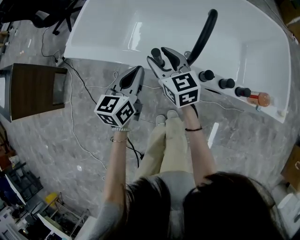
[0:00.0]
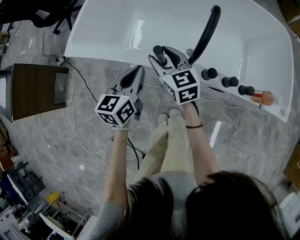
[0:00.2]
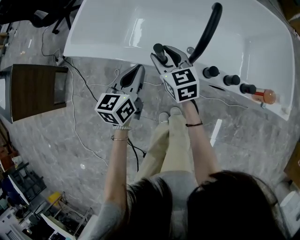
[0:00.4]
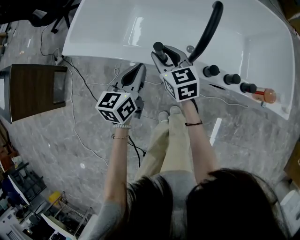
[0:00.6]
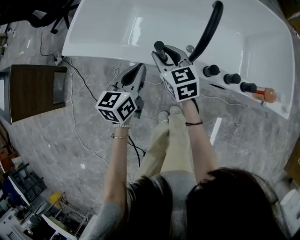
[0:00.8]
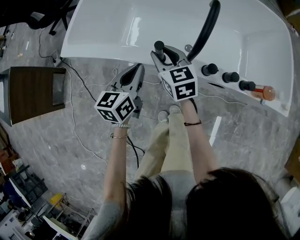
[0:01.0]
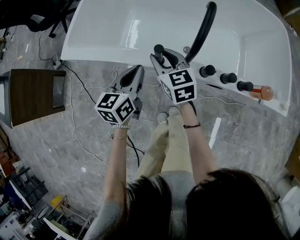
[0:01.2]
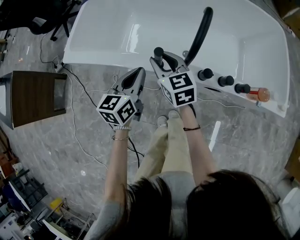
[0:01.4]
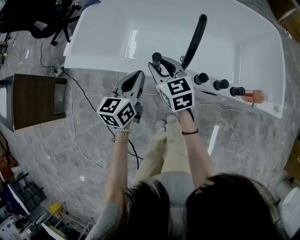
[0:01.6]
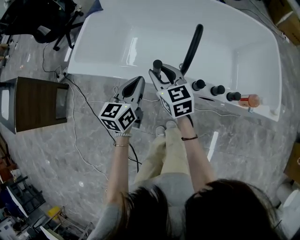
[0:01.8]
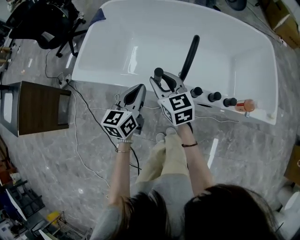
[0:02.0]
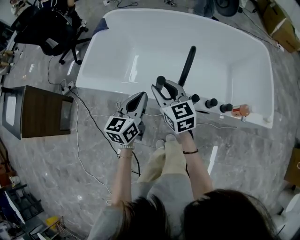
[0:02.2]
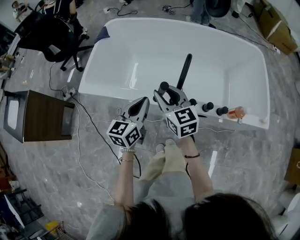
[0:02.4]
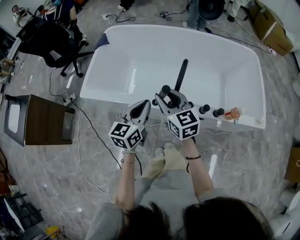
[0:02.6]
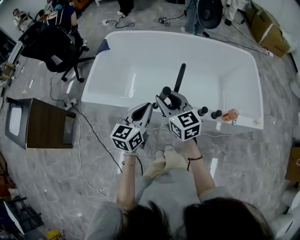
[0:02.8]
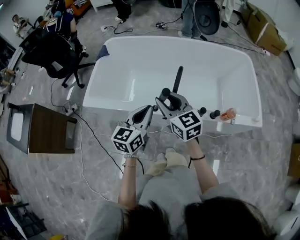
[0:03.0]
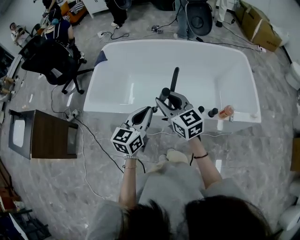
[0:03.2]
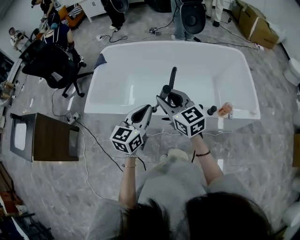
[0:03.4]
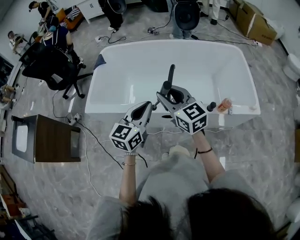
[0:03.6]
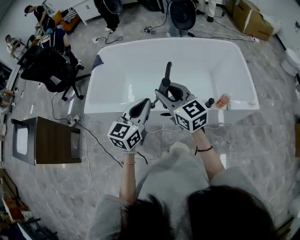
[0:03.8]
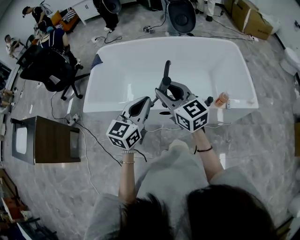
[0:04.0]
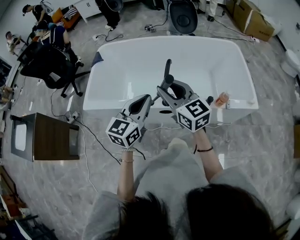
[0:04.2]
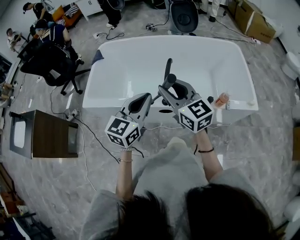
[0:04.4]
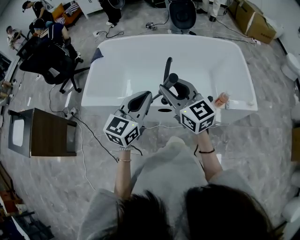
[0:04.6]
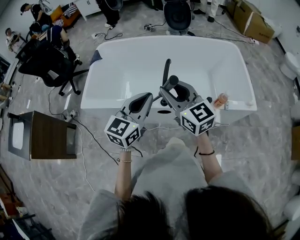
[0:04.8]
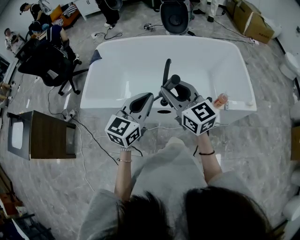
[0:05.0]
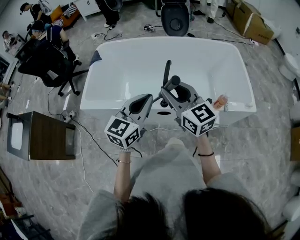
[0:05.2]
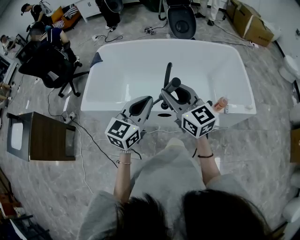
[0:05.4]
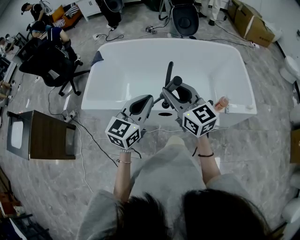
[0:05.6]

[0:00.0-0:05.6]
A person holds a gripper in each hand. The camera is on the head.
0:00.0 to 0:01.4: The grippers make only small movements.
0:01.4 to 0:02.8: Both grippers move upward, roughly 20 cm.
0:02.8 to 0:04.2: The two grippers go approximately 10 cm upward and backward.
0:04.2 to 0:05.6: The grippers move only a little.

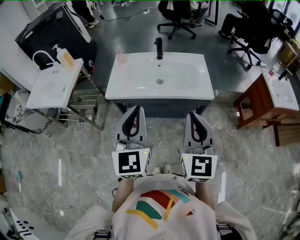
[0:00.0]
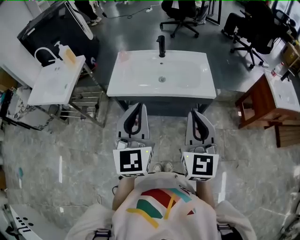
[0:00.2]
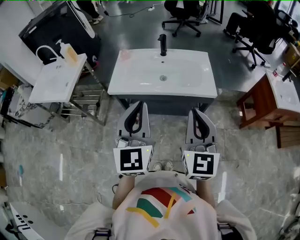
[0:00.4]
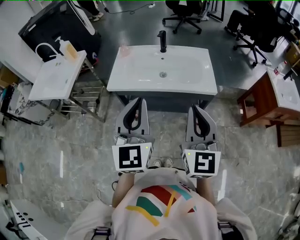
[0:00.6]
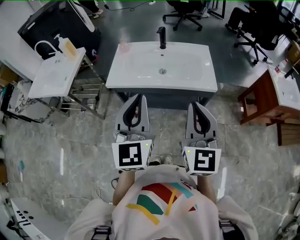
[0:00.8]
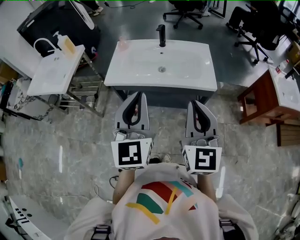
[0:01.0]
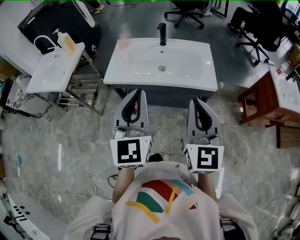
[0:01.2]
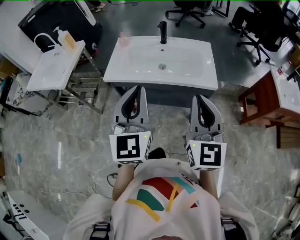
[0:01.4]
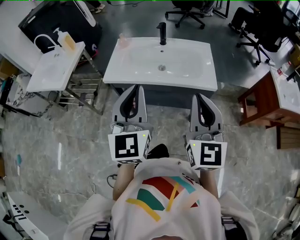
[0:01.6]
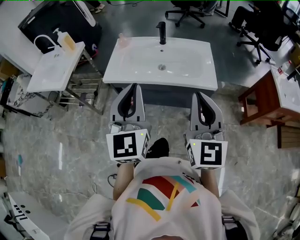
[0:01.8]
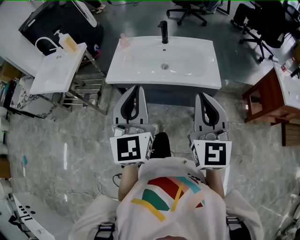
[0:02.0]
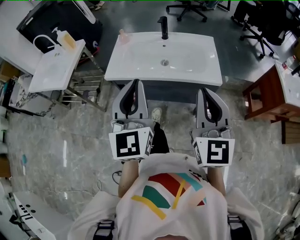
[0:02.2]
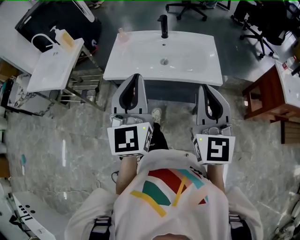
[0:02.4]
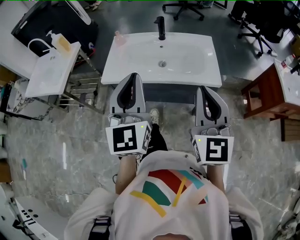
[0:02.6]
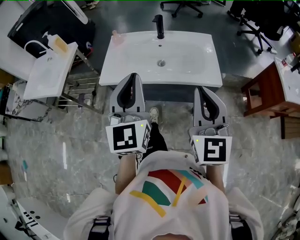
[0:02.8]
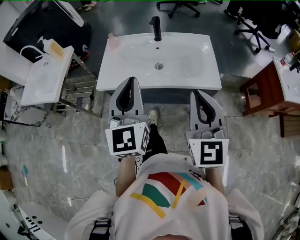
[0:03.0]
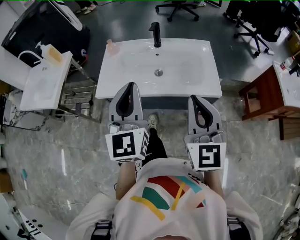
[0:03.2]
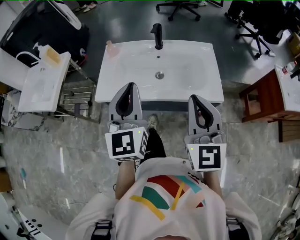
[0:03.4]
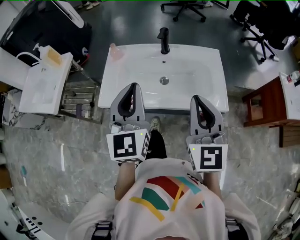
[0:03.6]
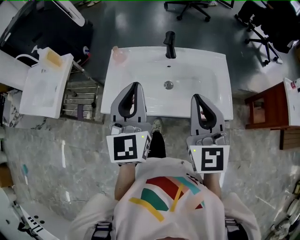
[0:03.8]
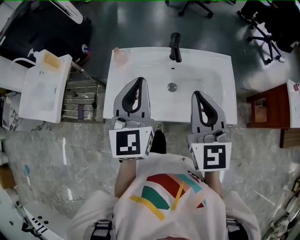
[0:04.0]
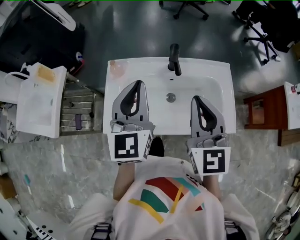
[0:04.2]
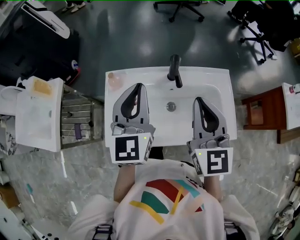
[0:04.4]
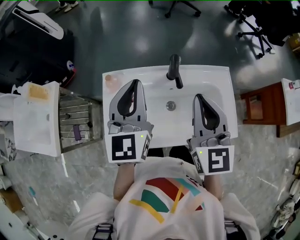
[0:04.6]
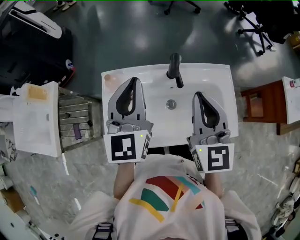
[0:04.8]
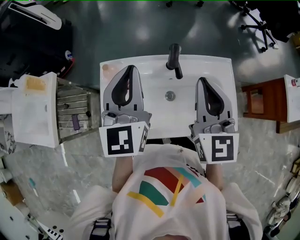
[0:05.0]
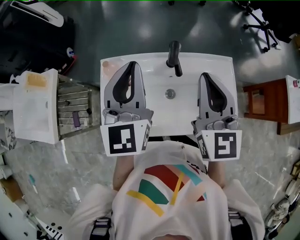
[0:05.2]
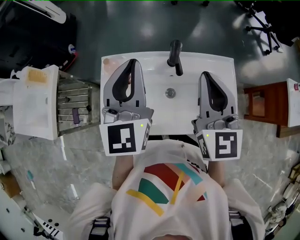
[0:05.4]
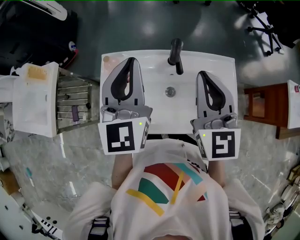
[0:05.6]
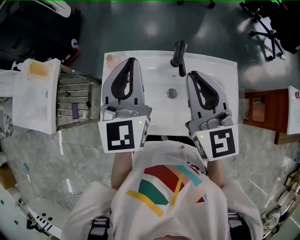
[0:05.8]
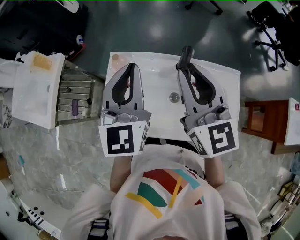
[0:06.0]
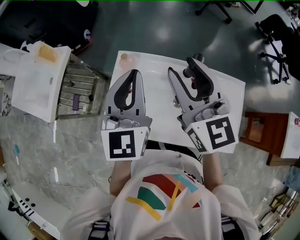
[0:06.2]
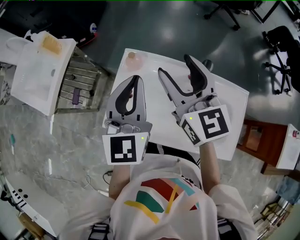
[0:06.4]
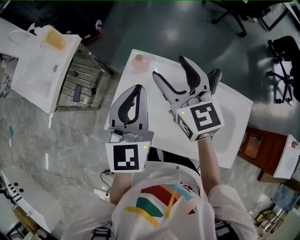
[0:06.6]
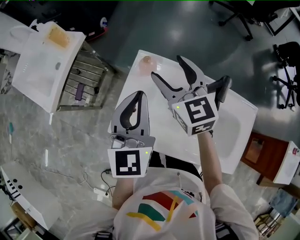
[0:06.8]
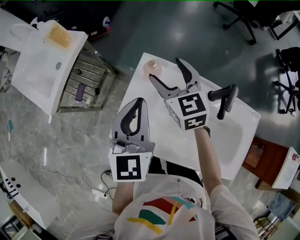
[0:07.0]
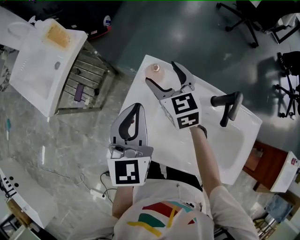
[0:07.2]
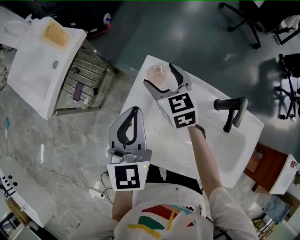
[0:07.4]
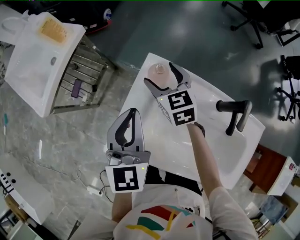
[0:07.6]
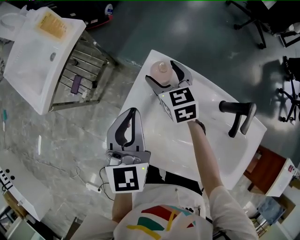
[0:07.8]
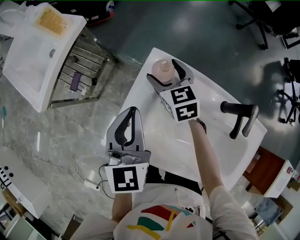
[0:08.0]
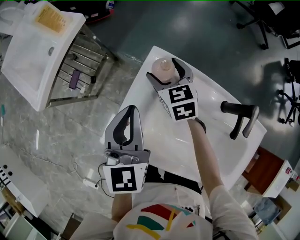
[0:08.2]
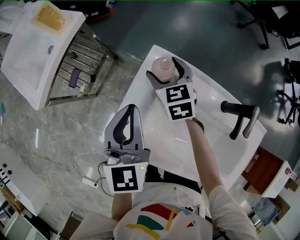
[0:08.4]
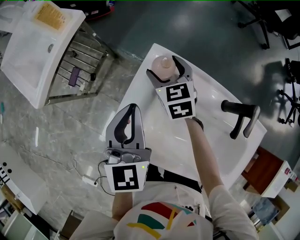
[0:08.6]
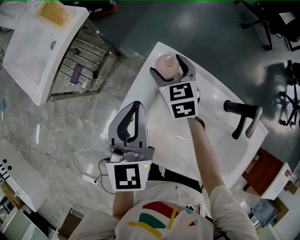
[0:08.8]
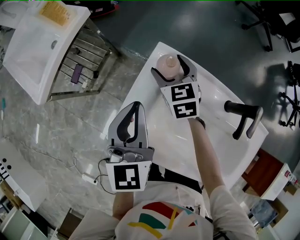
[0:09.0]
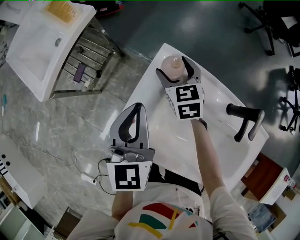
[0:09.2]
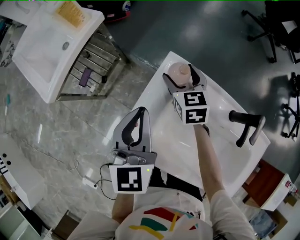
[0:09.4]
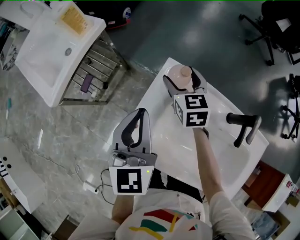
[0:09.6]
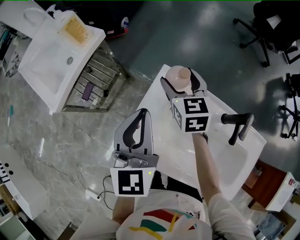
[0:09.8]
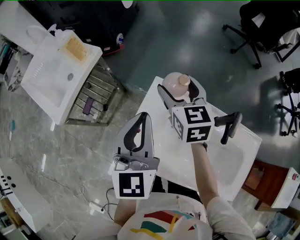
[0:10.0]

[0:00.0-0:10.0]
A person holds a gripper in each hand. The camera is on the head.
0:00.0 to 0:01.4: The grippers move only a little.
0:01.4 to 0:02.8: The two grippers go about 5 cm forward.
0:02.8 to 0:04.2: The grippers both shift forward by approximately 30 cm.
0:04.2 to 0:05.8: Both grippers travel together forward, some 10 cm.
0:05.8 to 0:07.2: The right gripper heads forward, to the left and downward, covering about 35 cm, swivels roughly 30 degrees, and opens its fingers. Meanwhile the left gripper goes approximately 20 cm to the left and downward, and turns by about 20 degrees.
0:07.2 to 0:08.6: The left gripper is displaced downward by roughly 5 cm. The right gripper shifts some 10 cm downward.
0:08.6 to 0:10.0: The grippers both shift upward by roughly 15 cm.

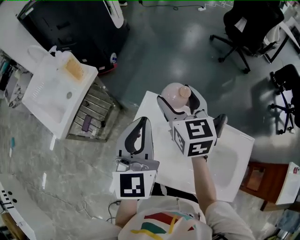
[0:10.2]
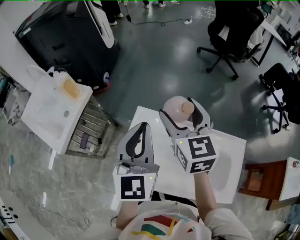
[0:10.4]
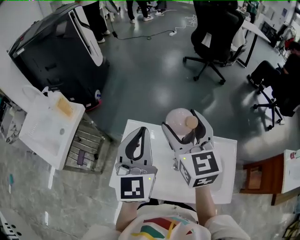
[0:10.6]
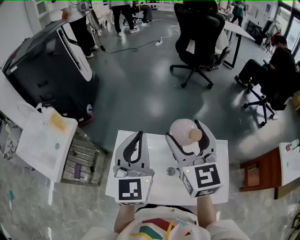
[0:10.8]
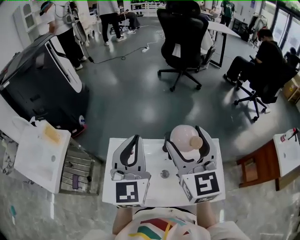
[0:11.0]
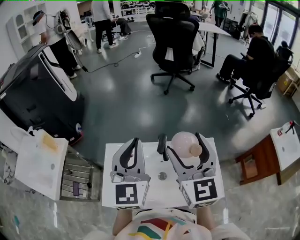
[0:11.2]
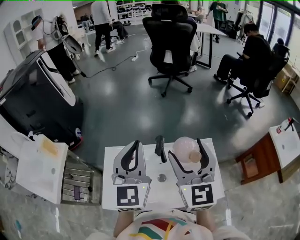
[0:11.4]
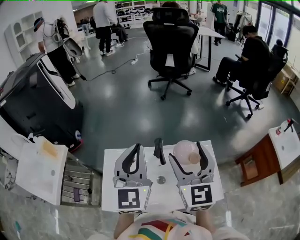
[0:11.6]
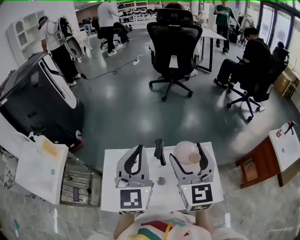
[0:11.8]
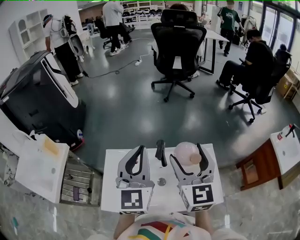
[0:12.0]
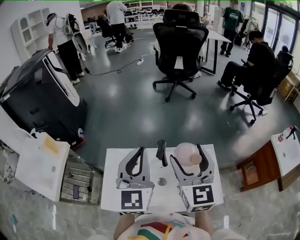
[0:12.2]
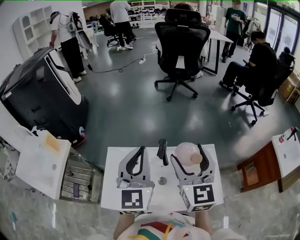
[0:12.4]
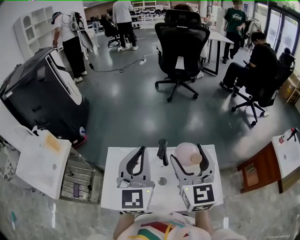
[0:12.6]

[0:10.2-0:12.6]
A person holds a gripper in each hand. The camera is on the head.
0:10.2 to 0:11.4: The right gripper changes place by some 35 cm, and turns by roughly 40 degrees; the left gripper moves roughly 20 cm, and changes its angle by some 30 degrees.
0:11.4 to 0:12.6: The grippers make only small movements.

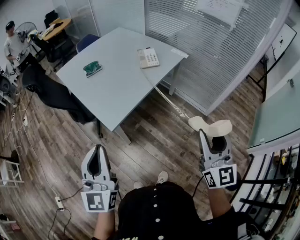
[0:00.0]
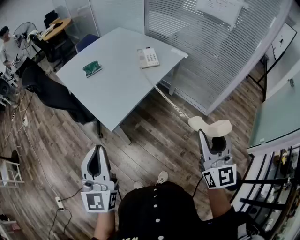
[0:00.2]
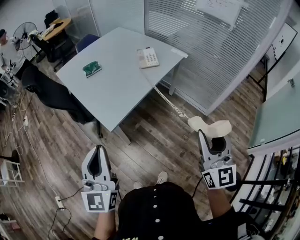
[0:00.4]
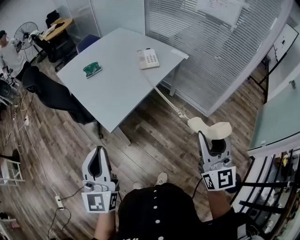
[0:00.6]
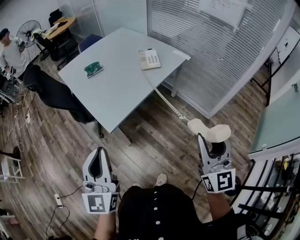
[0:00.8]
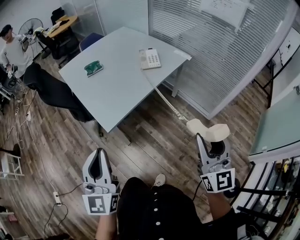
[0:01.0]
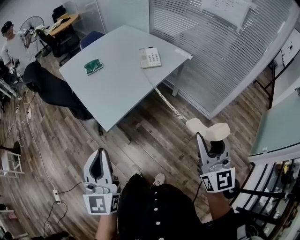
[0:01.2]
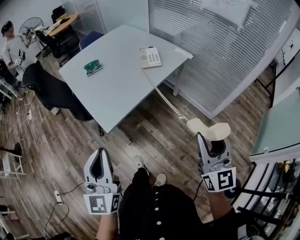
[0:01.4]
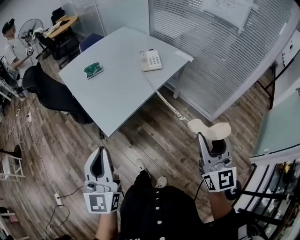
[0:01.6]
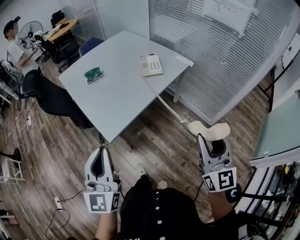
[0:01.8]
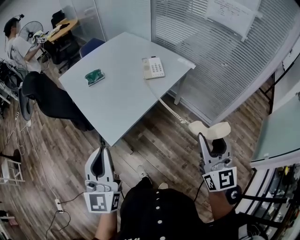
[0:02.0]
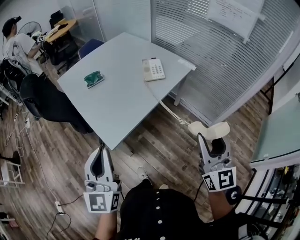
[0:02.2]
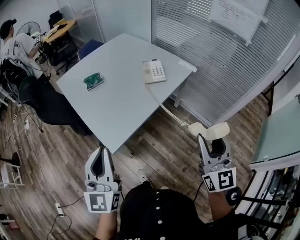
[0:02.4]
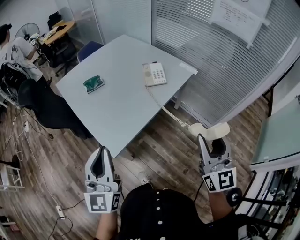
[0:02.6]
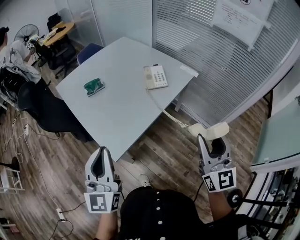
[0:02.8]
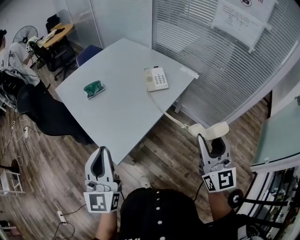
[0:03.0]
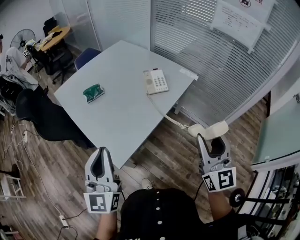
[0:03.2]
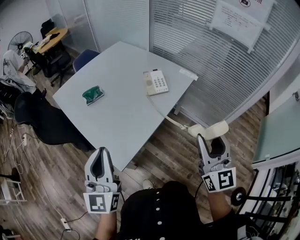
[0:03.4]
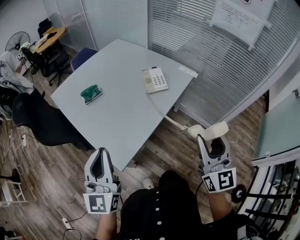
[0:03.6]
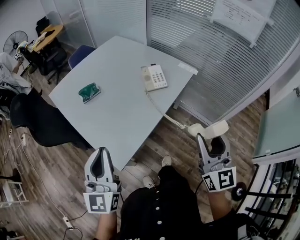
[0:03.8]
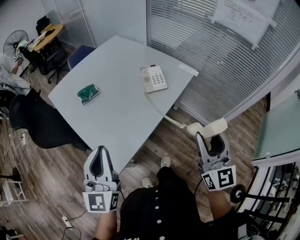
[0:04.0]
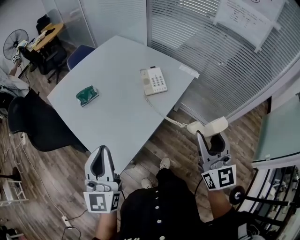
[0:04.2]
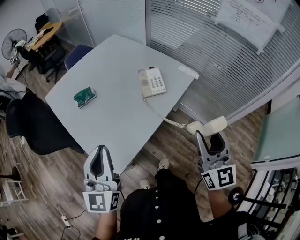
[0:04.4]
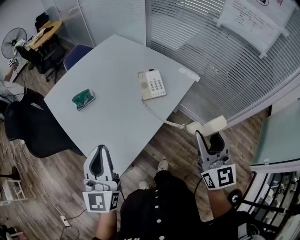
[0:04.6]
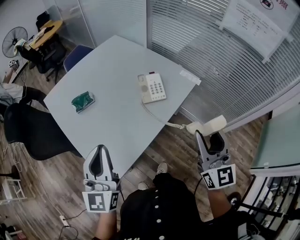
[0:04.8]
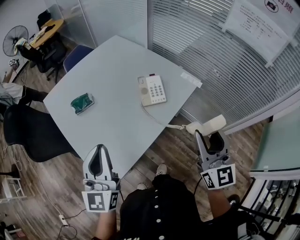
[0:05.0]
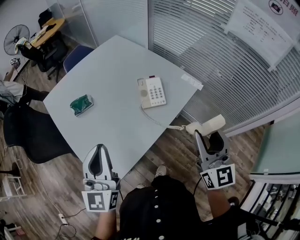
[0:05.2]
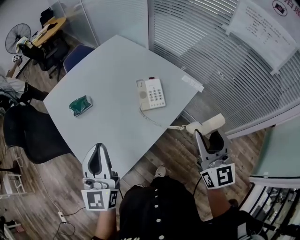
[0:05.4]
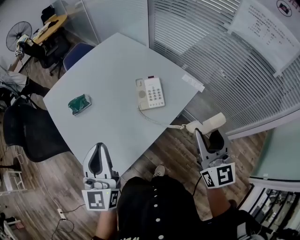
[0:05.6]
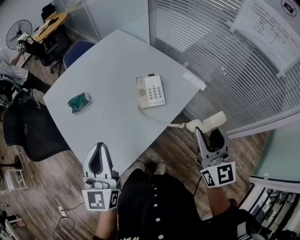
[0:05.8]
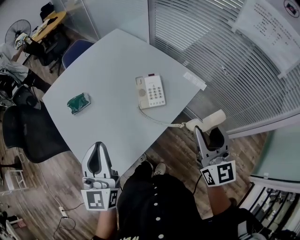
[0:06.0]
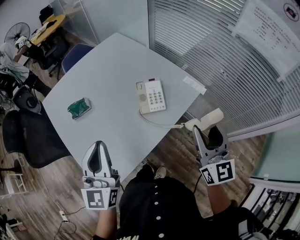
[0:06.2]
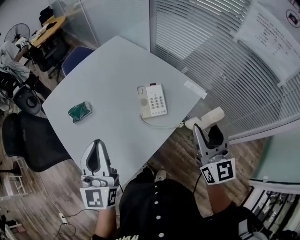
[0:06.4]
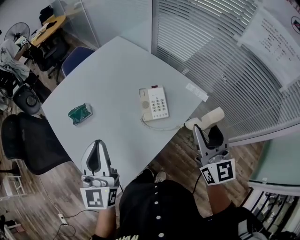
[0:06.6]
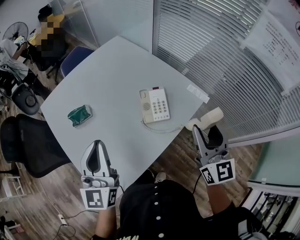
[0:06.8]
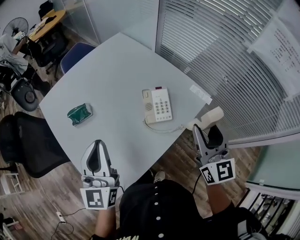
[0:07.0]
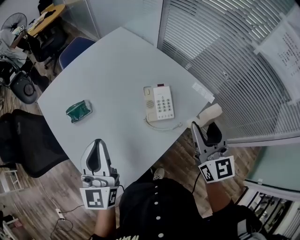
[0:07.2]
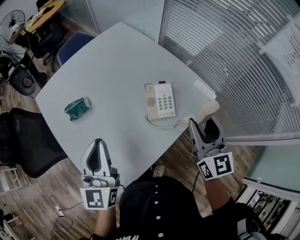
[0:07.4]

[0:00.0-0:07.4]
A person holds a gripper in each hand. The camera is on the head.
0:00.0 to 0:01.4: The right gripper changes place by about 5 cm, while the left gripper travels to the right by approximately 5 cm.
0:01.4 to 0:03.0: The right gripper shifts roughly 15 cm forward and to the left. The left gripper is displaced forward by about 20 cm.
0:03.0 to 0:04.4: The grippers both shift forward by roughly 10 cm.
0:04.4 to 0:06.0: Both grippers move forward and to the right, about 15 cm.
0:06.0 to 0:07.4: Both grippers travel together forward and to the left, some 15 cm.
